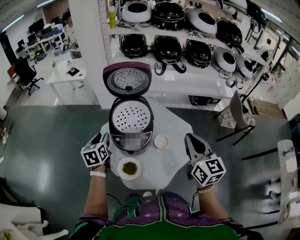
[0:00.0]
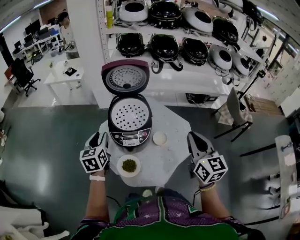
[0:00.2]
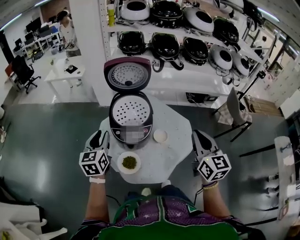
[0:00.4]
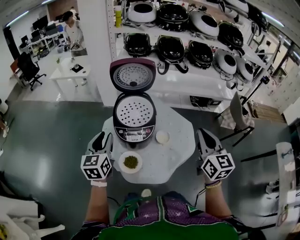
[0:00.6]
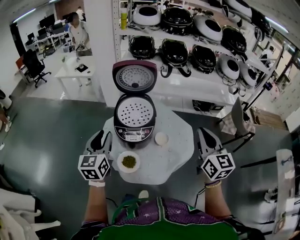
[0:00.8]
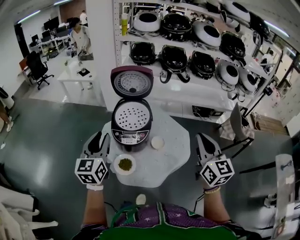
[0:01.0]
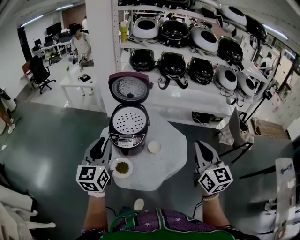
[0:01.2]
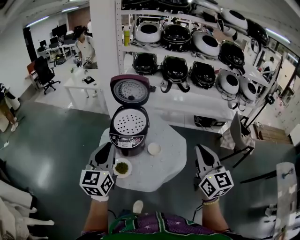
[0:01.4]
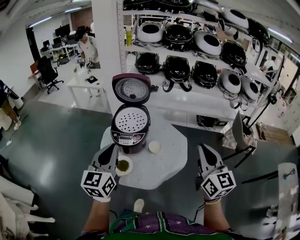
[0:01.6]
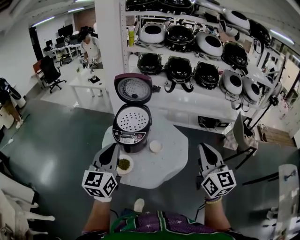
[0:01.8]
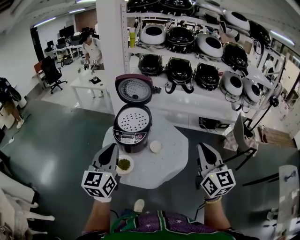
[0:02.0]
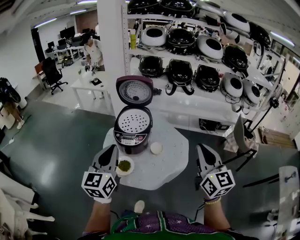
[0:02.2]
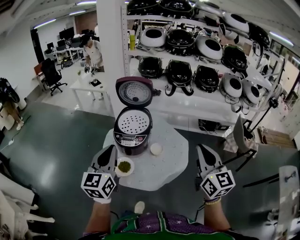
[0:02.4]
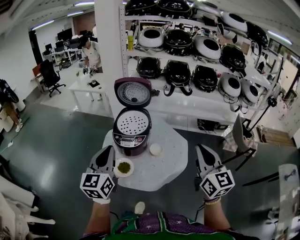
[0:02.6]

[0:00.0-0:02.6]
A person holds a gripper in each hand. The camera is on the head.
0.0 to 1.2 s: The right gripper heads backward, to the right and upward, covering roughly 15 cm. Meanwhile the left gripper goes some 25 cm upward, backward and to the right, and swivels about 30 degrees.
1.2 to 2.6 s: The right gripper shifts by approximately 5 cm. The left gripper goes some 5 cm backward.

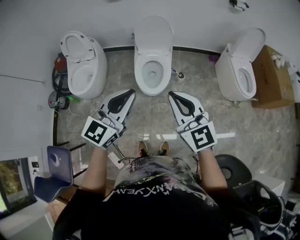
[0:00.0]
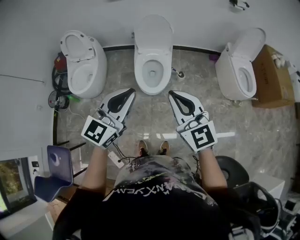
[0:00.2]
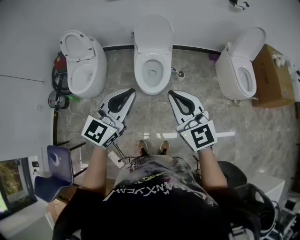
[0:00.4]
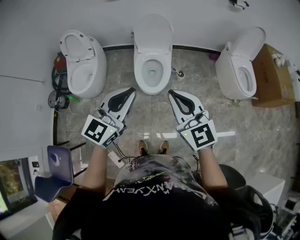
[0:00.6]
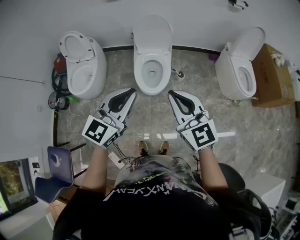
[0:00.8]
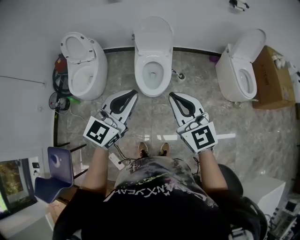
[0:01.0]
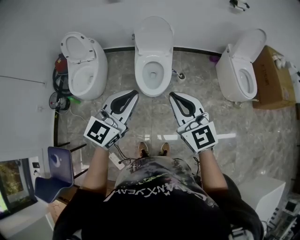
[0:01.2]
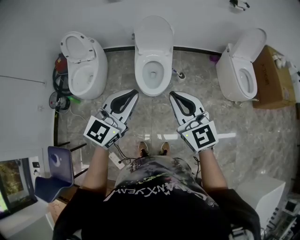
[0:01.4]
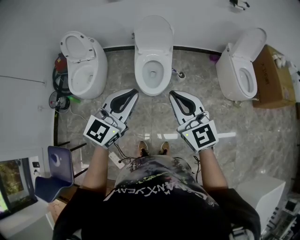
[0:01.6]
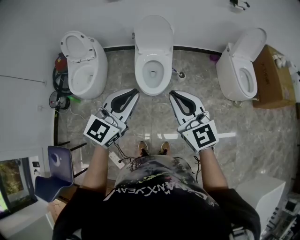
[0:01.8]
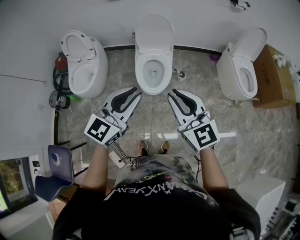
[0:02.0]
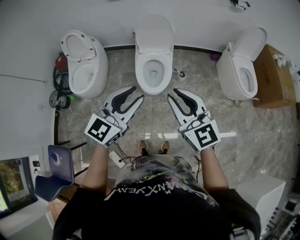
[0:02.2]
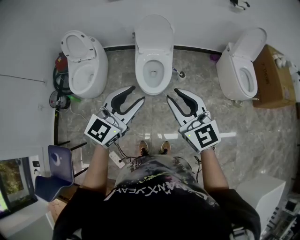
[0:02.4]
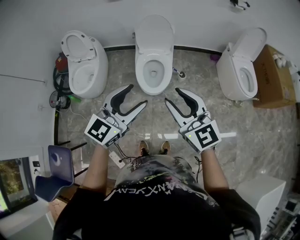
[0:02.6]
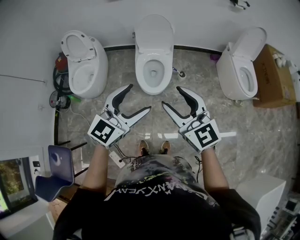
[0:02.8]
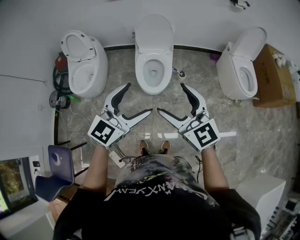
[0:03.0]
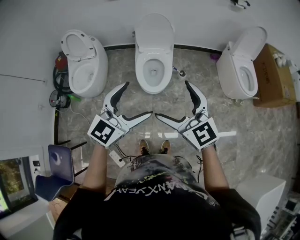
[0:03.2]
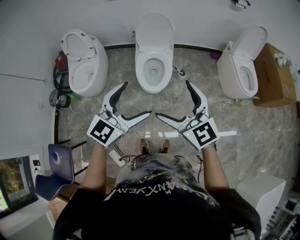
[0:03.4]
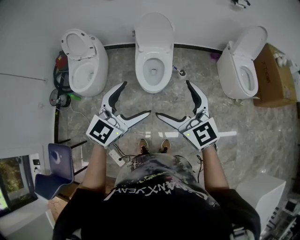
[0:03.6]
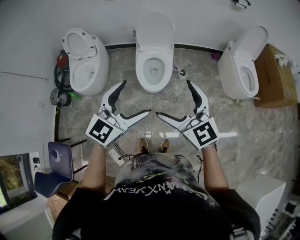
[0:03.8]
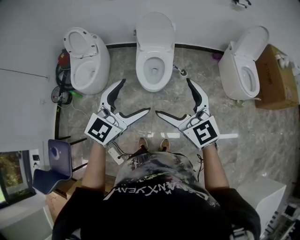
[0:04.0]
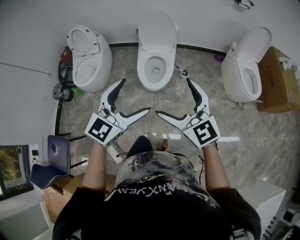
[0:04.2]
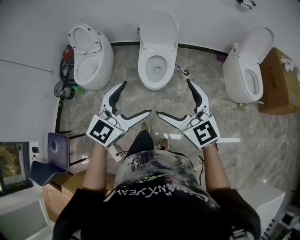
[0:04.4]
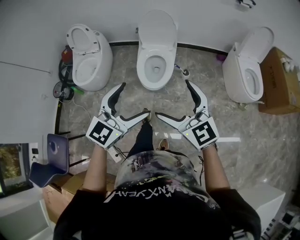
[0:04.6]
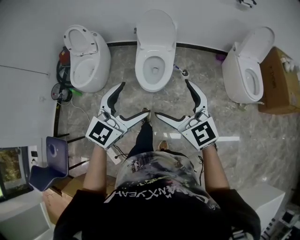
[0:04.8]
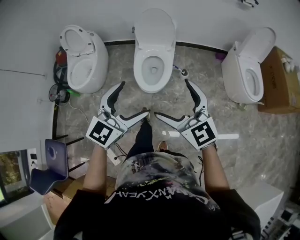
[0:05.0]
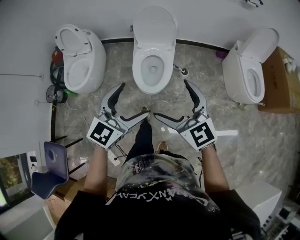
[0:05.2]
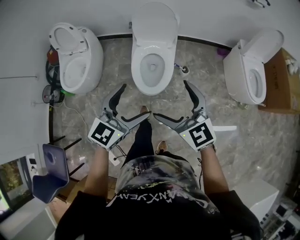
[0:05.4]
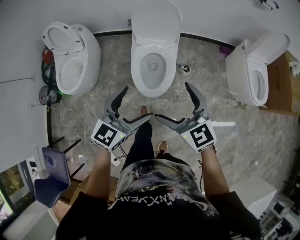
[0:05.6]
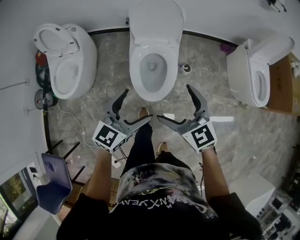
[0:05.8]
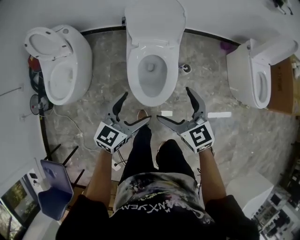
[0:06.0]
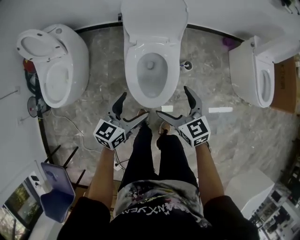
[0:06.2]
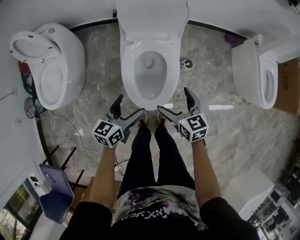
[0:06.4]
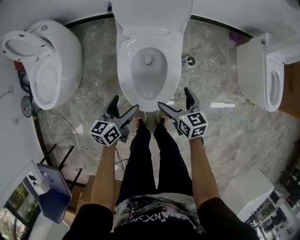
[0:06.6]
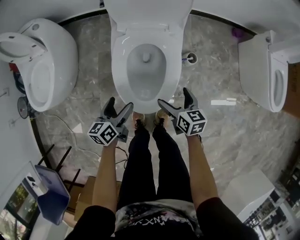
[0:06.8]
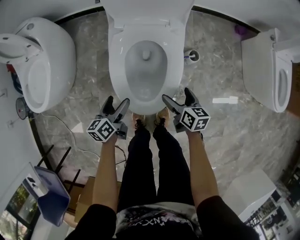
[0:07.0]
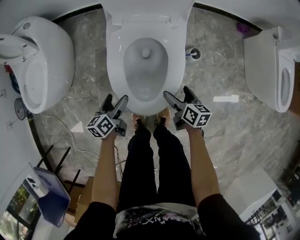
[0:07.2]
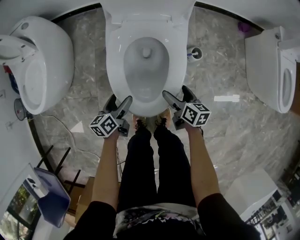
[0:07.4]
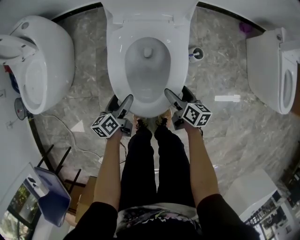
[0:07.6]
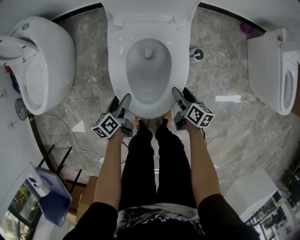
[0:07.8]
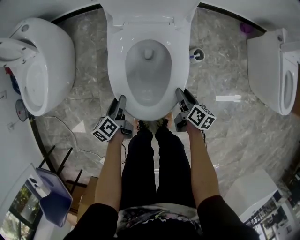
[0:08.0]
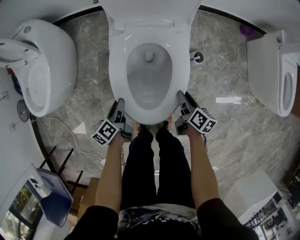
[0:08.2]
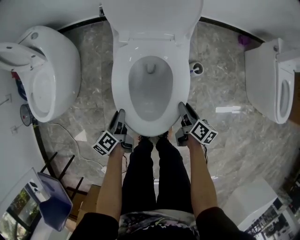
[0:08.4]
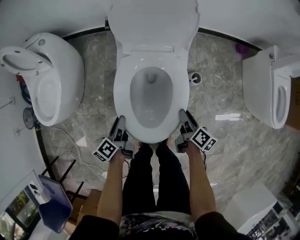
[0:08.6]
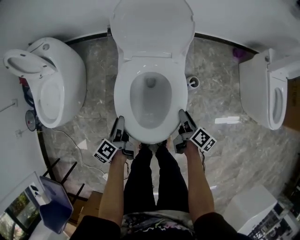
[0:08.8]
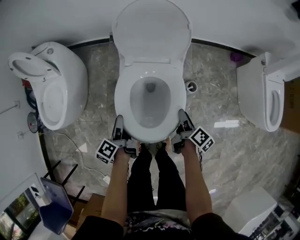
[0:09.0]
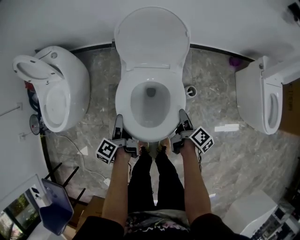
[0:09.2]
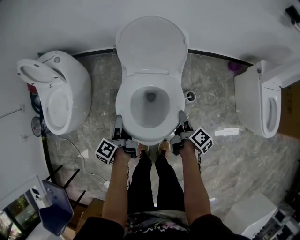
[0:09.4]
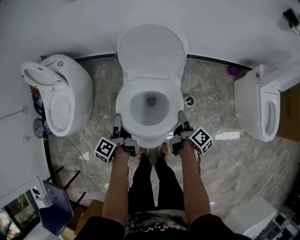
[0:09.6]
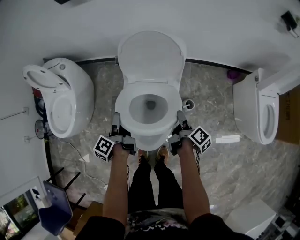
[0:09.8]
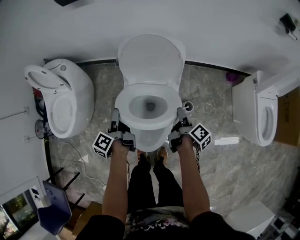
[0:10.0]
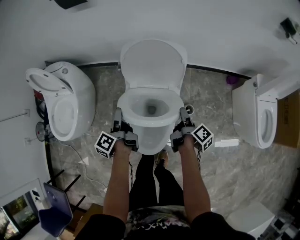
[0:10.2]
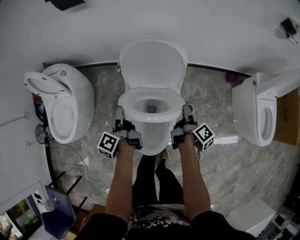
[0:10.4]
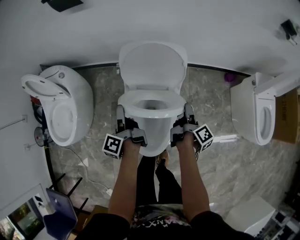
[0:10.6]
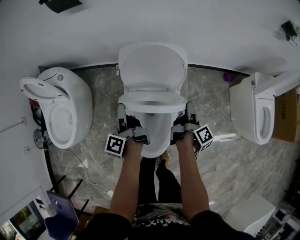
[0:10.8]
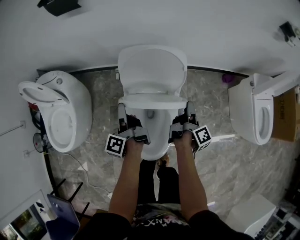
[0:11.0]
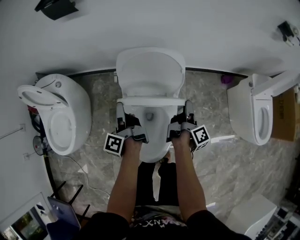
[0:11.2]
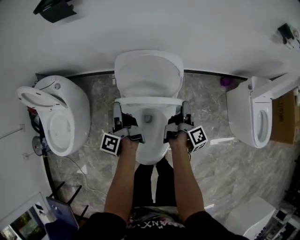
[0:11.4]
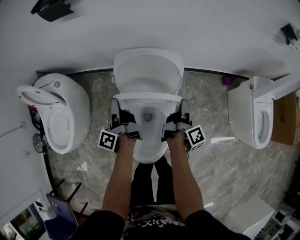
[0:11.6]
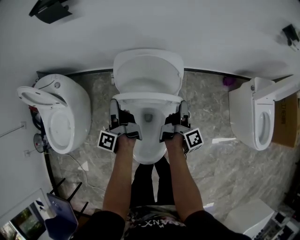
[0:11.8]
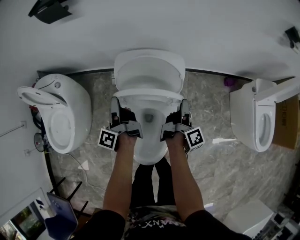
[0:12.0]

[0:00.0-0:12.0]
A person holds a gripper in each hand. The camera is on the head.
0.0 to 1.6 s: Both grippers stay put.
1.6 to 3.0 s: The right gripper opens up. Meanwhile the left gripper opens.
3.0 to 4.4 s: Both grippers move to the right, approximately 5 cm.
4.4 to 6.0 s: Both grippers travel together forward and downward, some 40 cm. The right gripper swivels roughly 30 degrees, while the left gripper rotates approximately 30 degrees.
6.0 to 7.6 s: The two grippers go about 40 cm downward. The right gripper twists roughly 50 degrees clockwise, seen from behind, while the left gripper rolls counterclockwise, seen from behind, by some 50 degrees.
7.6 to 9.0 s: Both grippers move upward, roughly 15 cm. The left gripper swivels roughly 30 degrees, and closes its fingers. The right gripper turns by approximately 30 degrees, and closes up.
9.0 to 10.4 s: The grippers both shift forward and upward by approximately 20 cm. The right gripper changes its angle by some 20 degrees.
10.4 to 12.0 s: Both grippers travel together forward, about 10 cm. The right gripper rotates approximately 20 degrees.

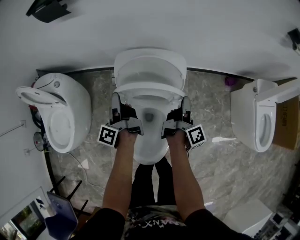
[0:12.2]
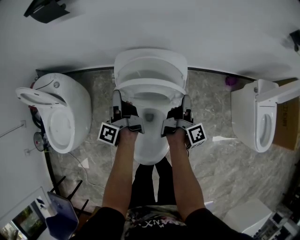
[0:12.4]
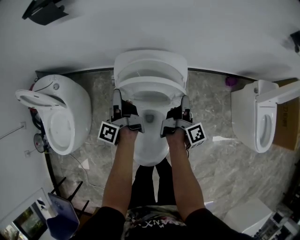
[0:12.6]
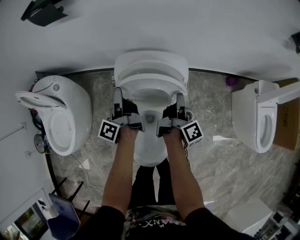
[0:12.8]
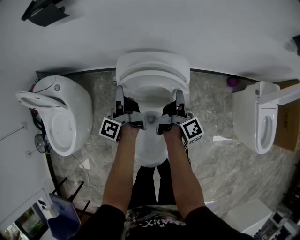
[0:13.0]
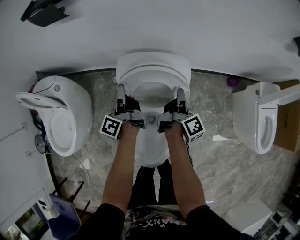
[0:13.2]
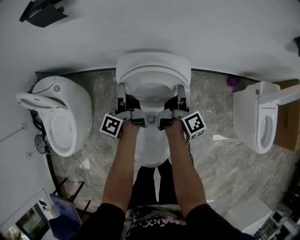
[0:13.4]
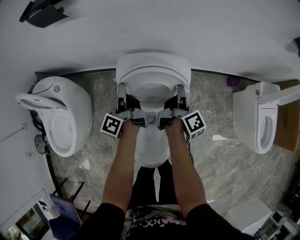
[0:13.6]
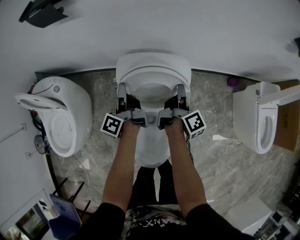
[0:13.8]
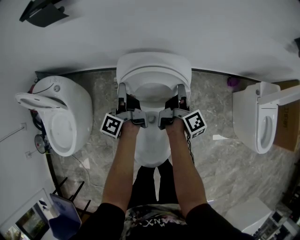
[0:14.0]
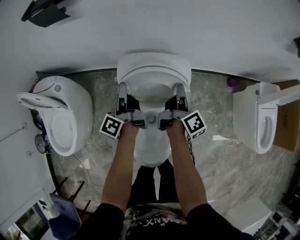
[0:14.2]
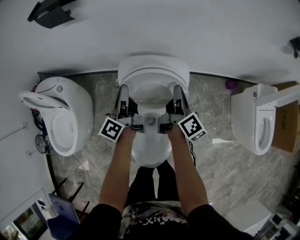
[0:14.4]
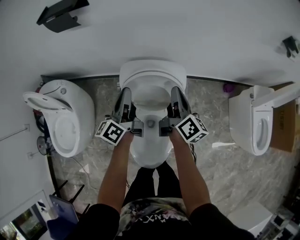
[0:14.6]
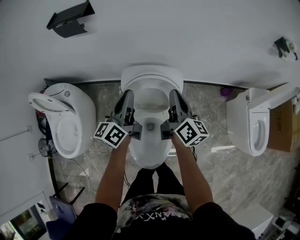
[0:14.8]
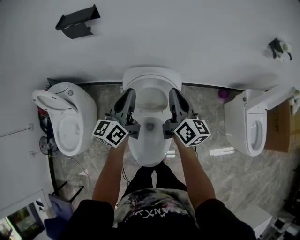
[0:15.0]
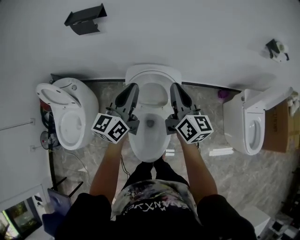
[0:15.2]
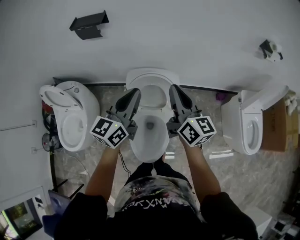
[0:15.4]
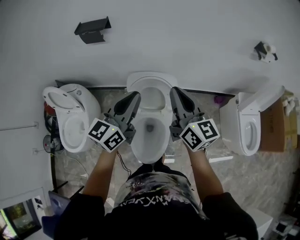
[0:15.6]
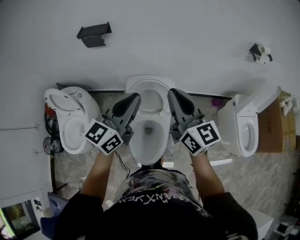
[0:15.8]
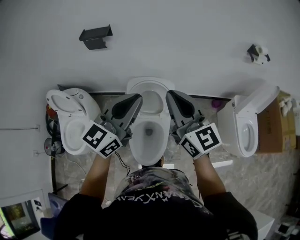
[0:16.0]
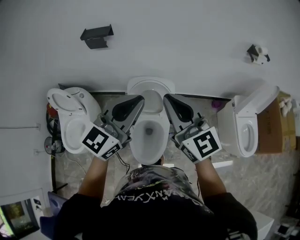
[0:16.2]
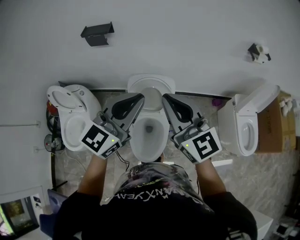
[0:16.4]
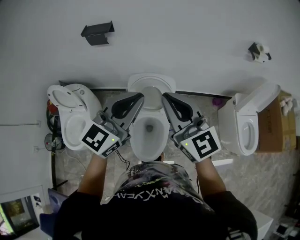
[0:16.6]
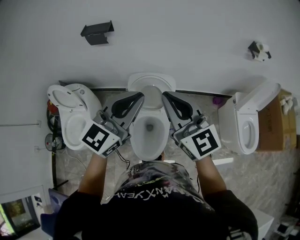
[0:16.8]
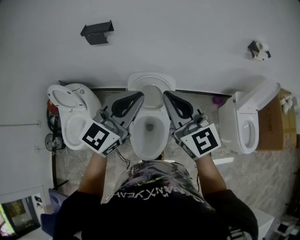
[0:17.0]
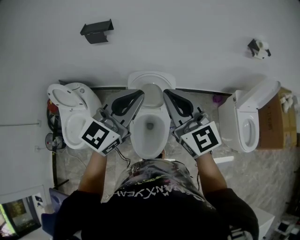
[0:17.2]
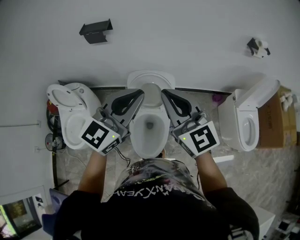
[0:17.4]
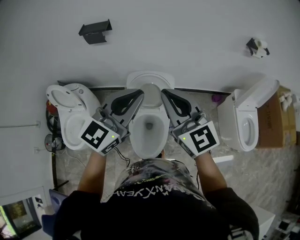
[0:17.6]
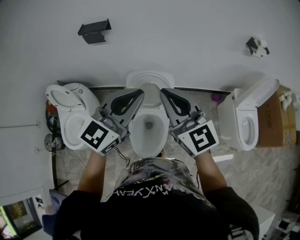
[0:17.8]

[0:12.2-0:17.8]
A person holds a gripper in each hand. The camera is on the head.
12.2 to 13.6 s: The grippers both shift forward by approximately 10 cm.
13.6 to 15.0 s: The two grippers go about 20 cm upward. The right gripper rotates around the line of its fingers by approximately 40 degrees, counterclockwise from behind; the left gripper rotates around the line of its fingers by some 50 degrees, clockwise from behind.
15.0 to 16.4 s: The grippers both shift upward and backward by some 30 cm. The left gripper swivels roughly 40 degrees. Meanwhile the right gripper swivels roughly 40 degrees.
16.4 to 17.8 s: The grippers stay close to where they were, moving slightly.

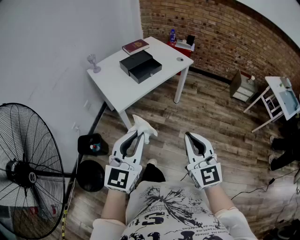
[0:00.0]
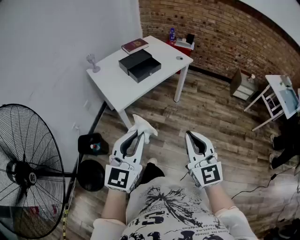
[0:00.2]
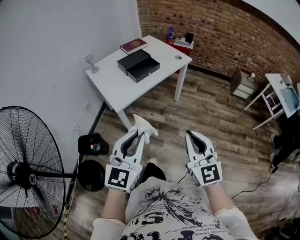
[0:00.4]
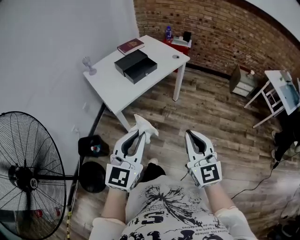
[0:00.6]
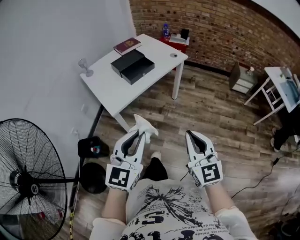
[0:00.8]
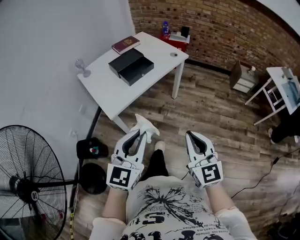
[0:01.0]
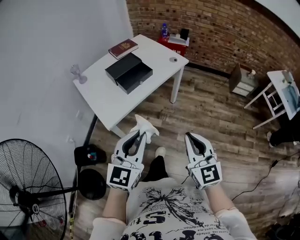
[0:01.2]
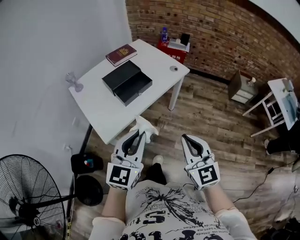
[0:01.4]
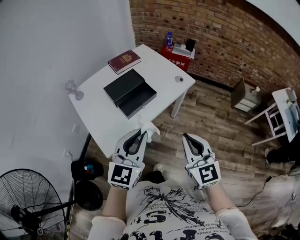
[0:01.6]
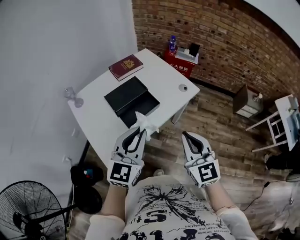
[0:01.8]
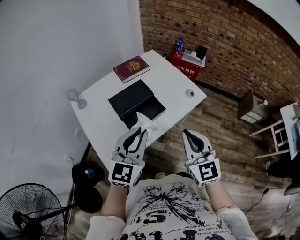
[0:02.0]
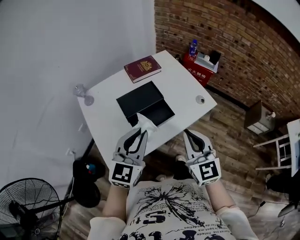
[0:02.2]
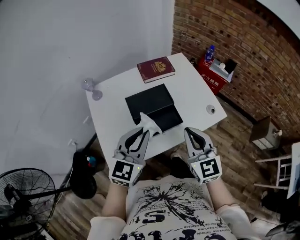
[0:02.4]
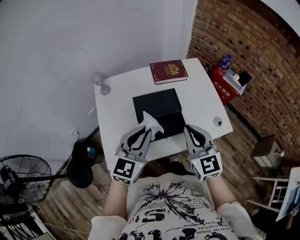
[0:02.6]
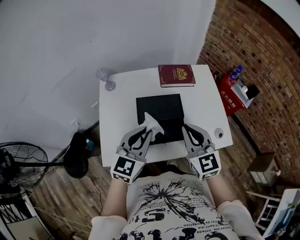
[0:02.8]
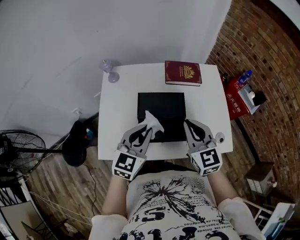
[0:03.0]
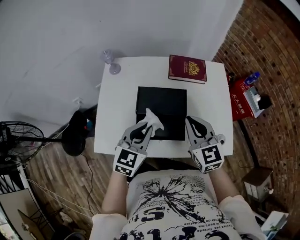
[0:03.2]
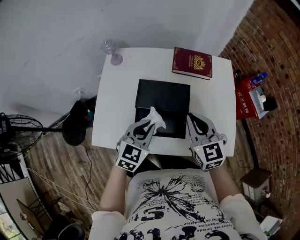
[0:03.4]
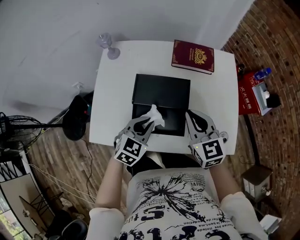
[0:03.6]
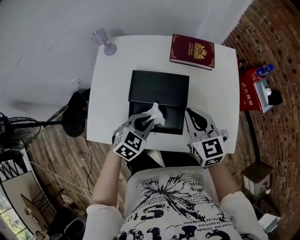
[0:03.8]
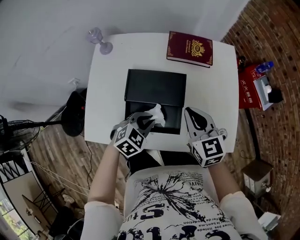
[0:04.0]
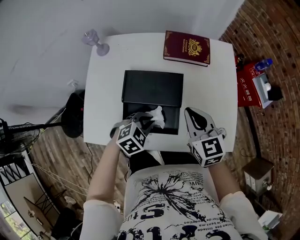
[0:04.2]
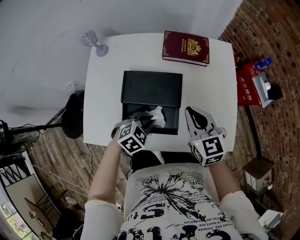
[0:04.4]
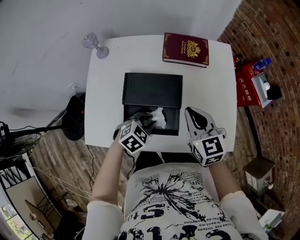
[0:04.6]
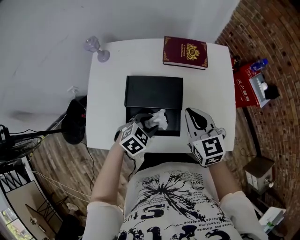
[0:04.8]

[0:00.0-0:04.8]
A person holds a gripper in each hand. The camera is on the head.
0.0 to 1.6 s: The two grippers go roughly 40 cm forward.
1.6 to 3.2 s: The right gripper changes place by about 50 cm, and turns by about 40 degrees. Meanwhile the left gripper ends up some 35 cm from where it was, and changes its angle by some 40 degrees.
3.2 to 4.8 s: The right gripper heads downward and forward, covering roughly 10 cm. Meanwhile the left gripper goes approximately 15 cm downward, tips its fingers downward by about 30 degrees, and opens its fingers.
